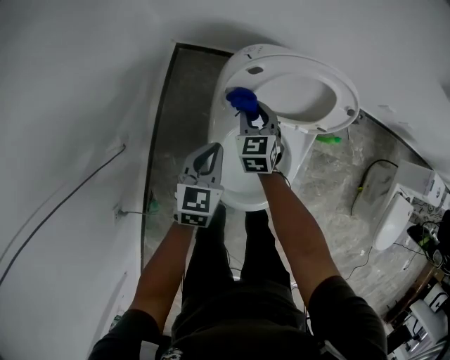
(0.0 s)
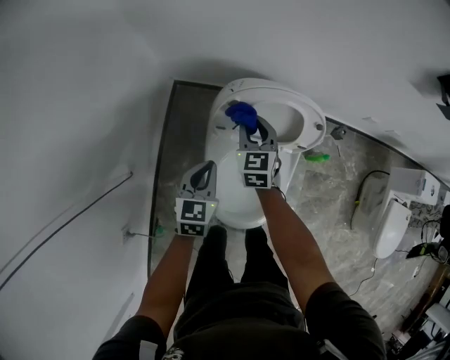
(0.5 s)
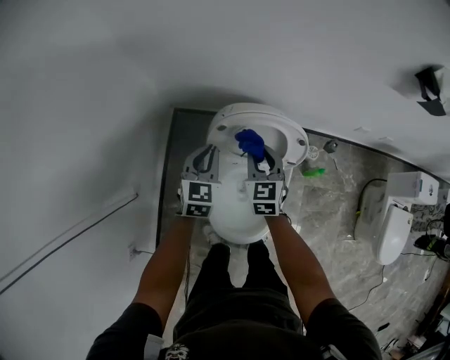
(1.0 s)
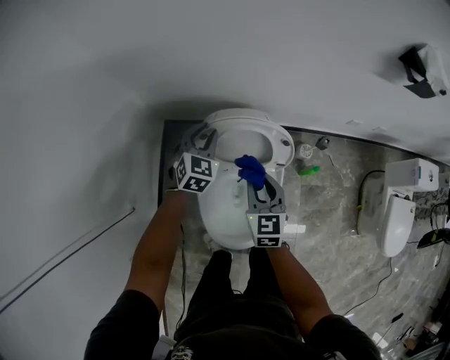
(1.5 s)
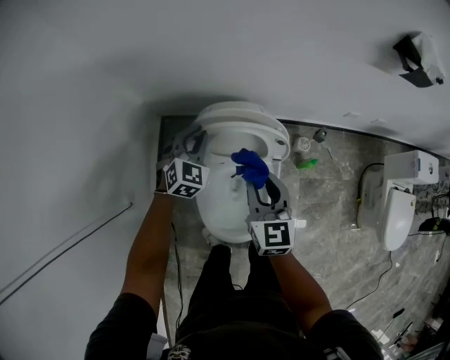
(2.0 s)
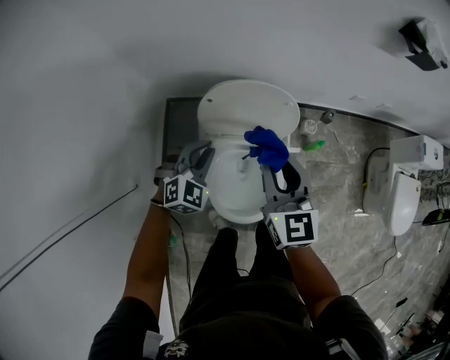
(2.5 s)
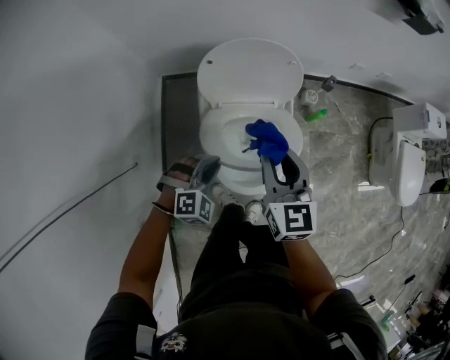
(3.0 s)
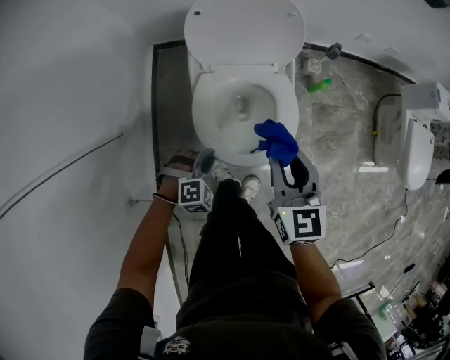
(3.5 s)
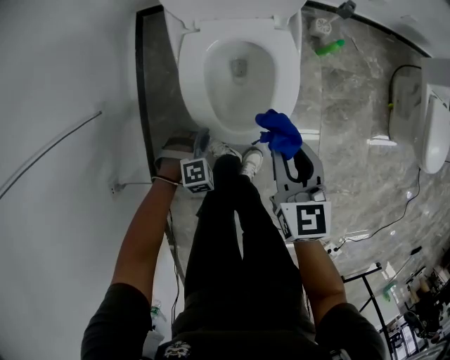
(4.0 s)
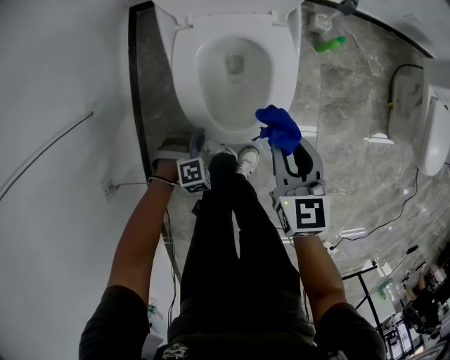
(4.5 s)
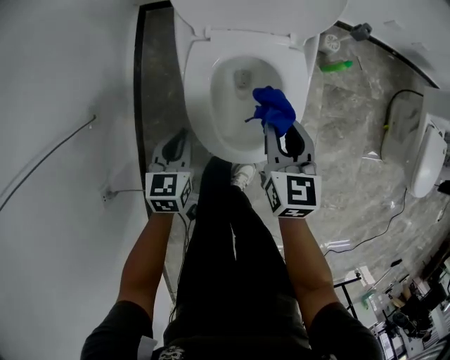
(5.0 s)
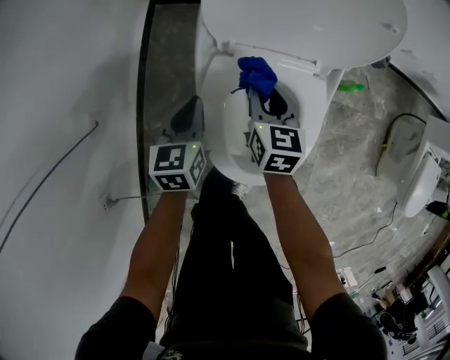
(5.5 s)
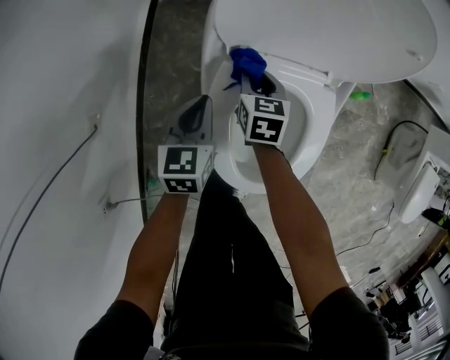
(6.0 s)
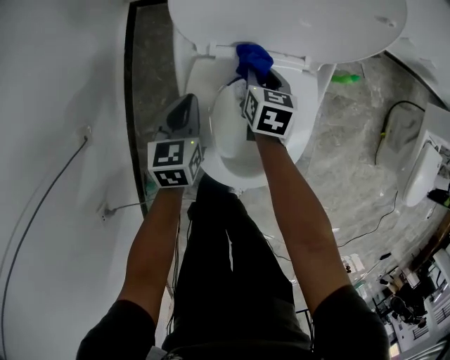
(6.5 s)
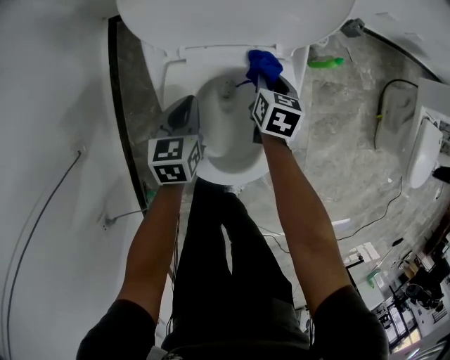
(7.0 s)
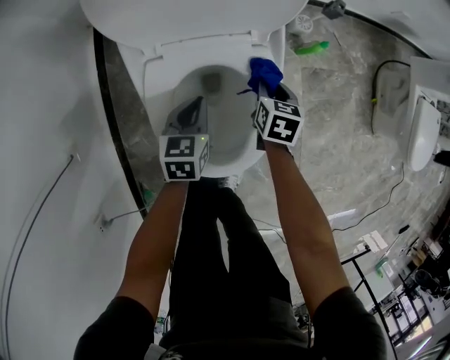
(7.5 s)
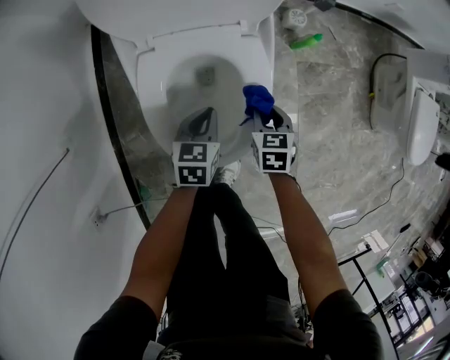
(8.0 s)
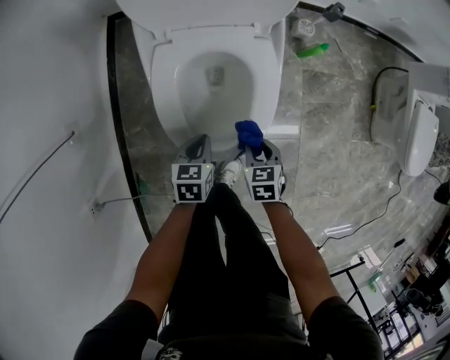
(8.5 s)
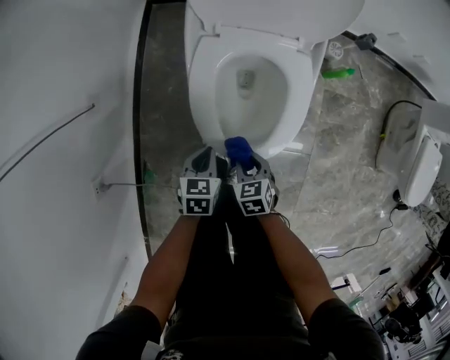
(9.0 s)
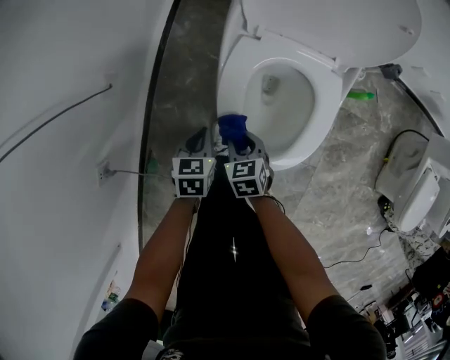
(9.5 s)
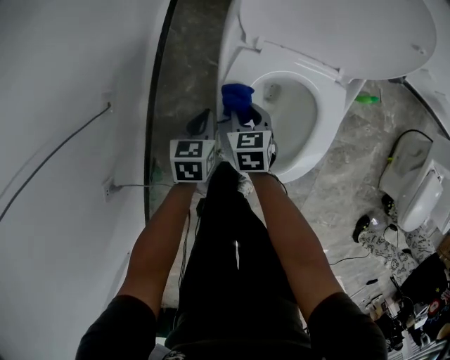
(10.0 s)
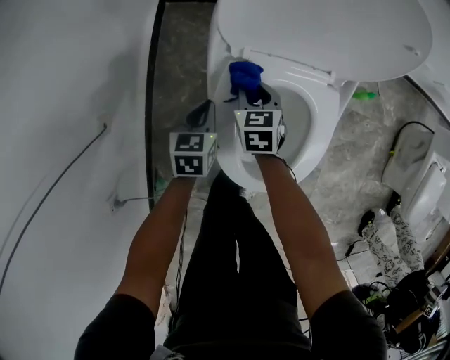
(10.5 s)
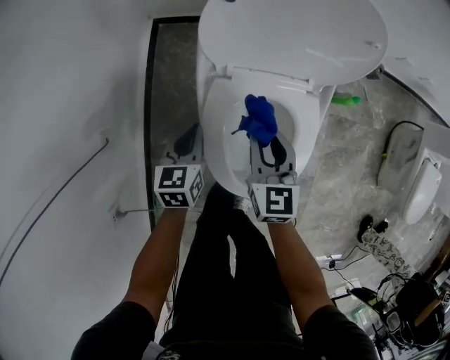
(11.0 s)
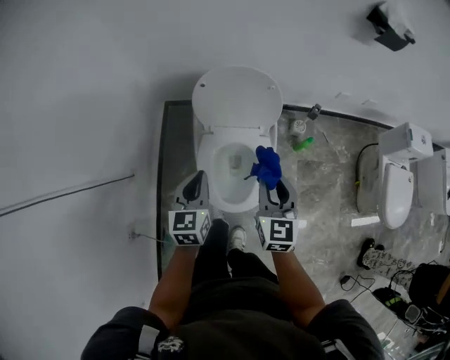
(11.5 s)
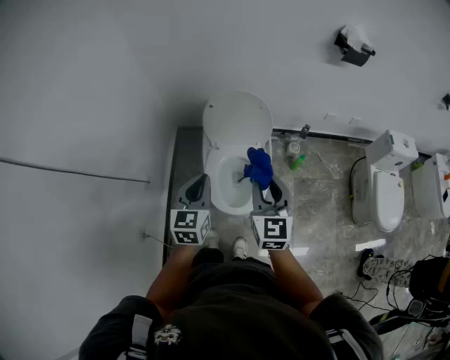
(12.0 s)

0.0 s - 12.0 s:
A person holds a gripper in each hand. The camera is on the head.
0.0 s - 2.0 s: The left gripper is displaced forward, upward and to the right by some 20 cm, and twists approximately 40 degrees clockwise, seen from behind. The right gripper goes approximately 30 cm upward and to the right, and changes its angle by about 30 degrees.
2.0 s - 4.0 s: The right gripper is displaced backward and downward by approximately 30 cm, while the left gripper travels backward and downward by some 50 cm, and points its fingers approximately 40 degrees further downward.
4.0 s - 6.0 s: The left gripper shifts some 25 cm forward, rotates around the line of its fingers by some 80 degrees, counterclockwise from behind, and closes its fingers; the right gripper is displaced forward, downward and to the left by approximately 40 cm.
6.0 s - 8.0 s: The left gripper is displaced to the right by some 20 cm; the right gripper heads to the right and backward, covering about 30 cm.
8.0 s - 10.0 s: The left gripper shifts by about 20 cm, and rotates some 20 degrees; the right gripper changes place by approximately 30 cm, and swivels some 20 degrees.
10.0 s - 12.0 s: Both grippers travel together upward, some 50 cm. The left gripper tilts its fingers approximately 30 degrees upward. The right gripper angles its fingers upward, by roughly 40 degrees.

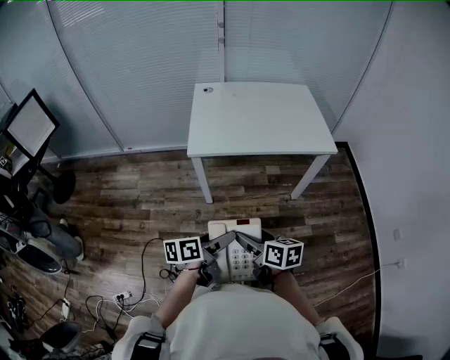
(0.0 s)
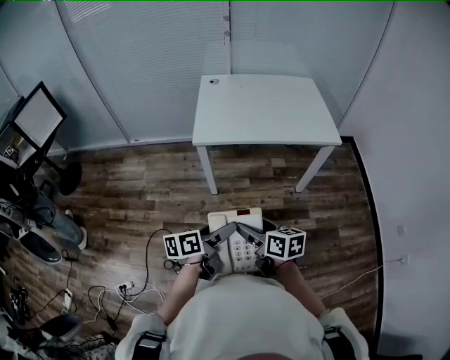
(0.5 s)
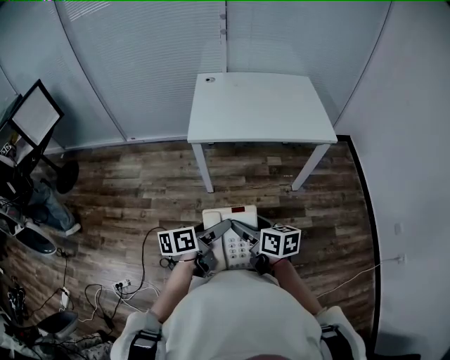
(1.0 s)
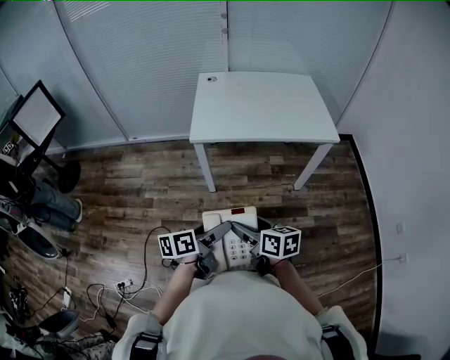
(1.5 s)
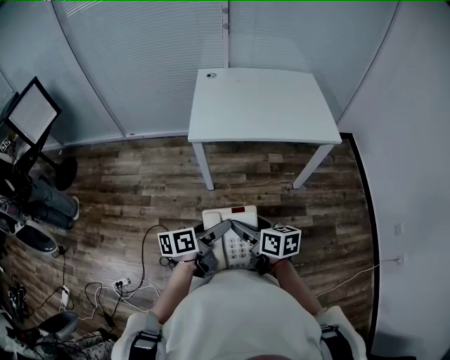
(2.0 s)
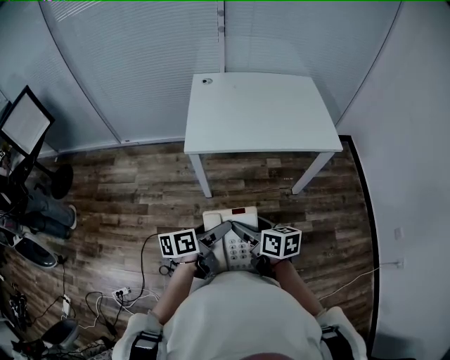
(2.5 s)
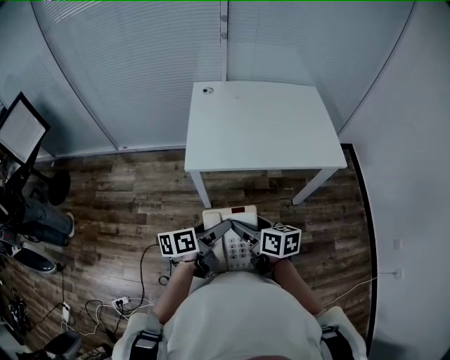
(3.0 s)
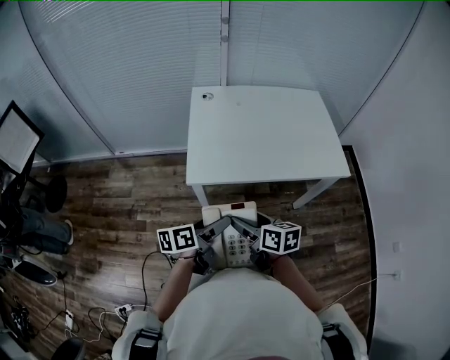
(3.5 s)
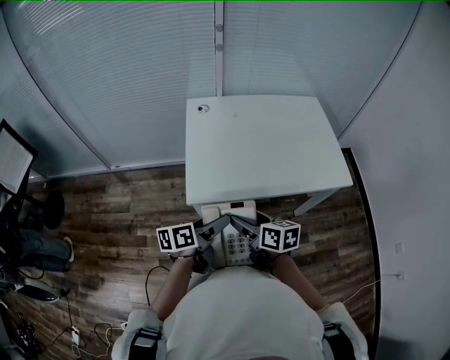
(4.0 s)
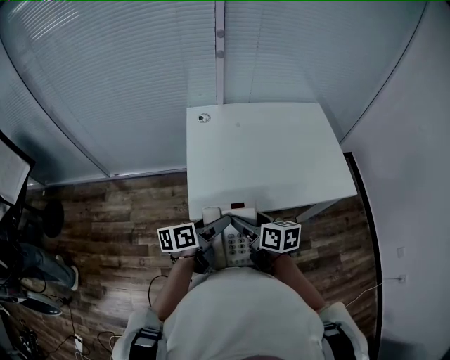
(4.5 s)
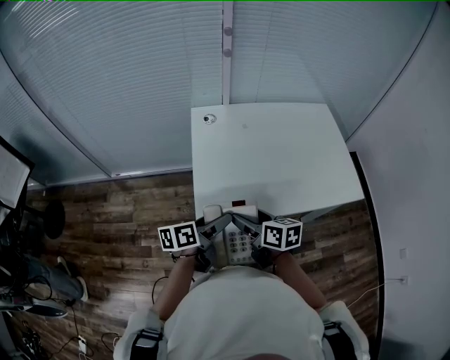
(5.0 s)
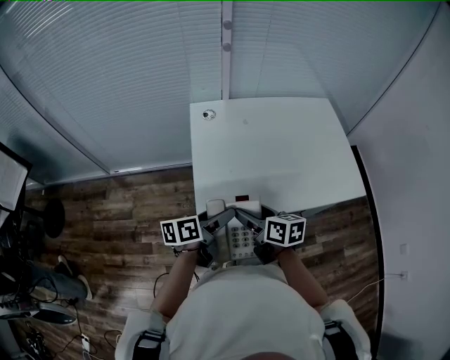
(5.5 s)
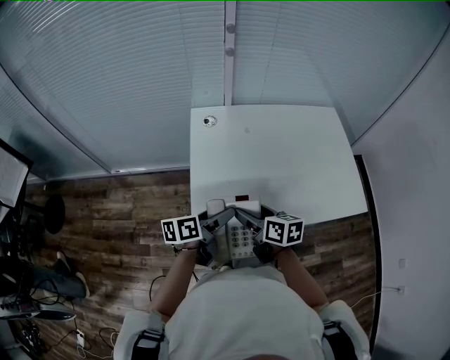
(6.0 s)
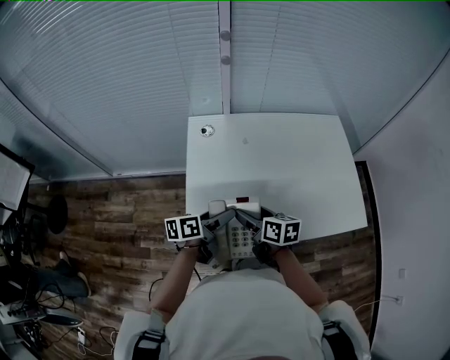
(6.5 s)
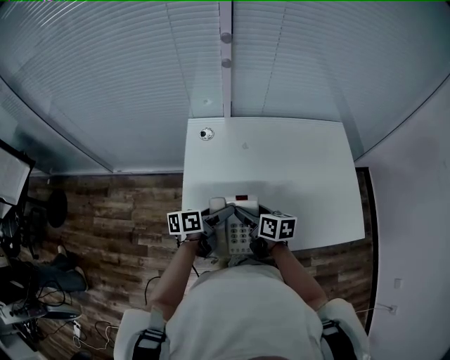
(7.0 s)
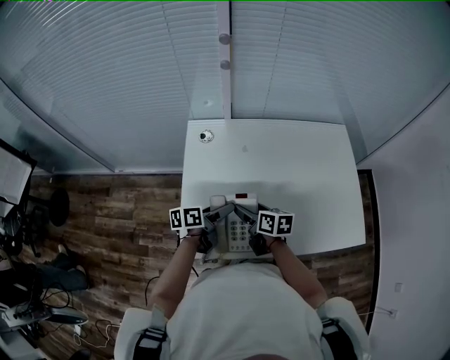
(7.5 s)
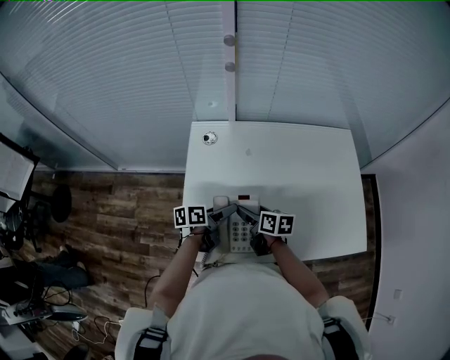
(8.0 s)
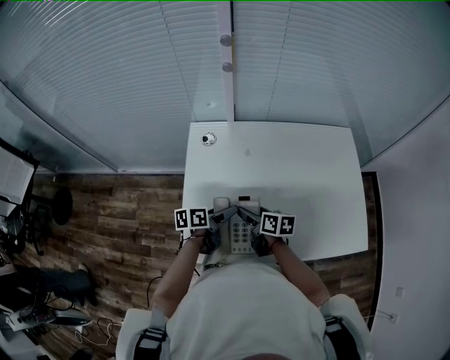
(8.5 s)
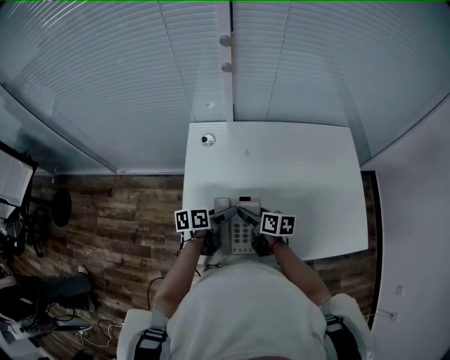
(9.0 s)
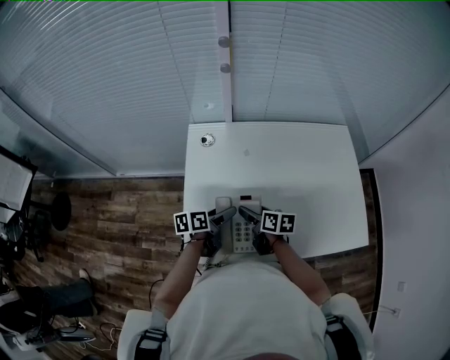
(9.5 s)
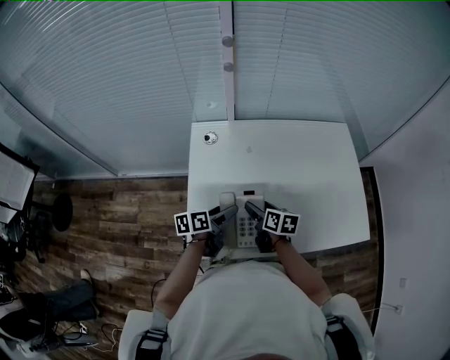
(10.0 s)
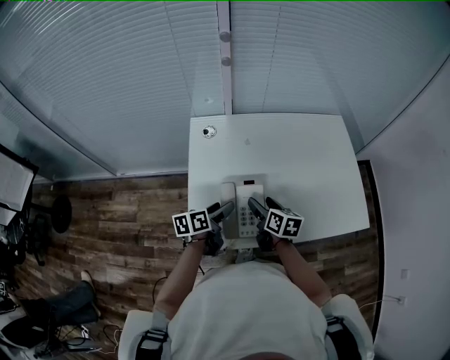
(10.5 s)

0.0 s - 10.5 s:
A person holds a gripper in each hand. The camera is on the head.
0.0 s - 2.0 s: There are only small adjustments of the grippers.
2.0 s - 4.0 s: Both grippers move forward, roughly 30 cm.
4.0 s - 6.5 s: The two grippers go approximately 20 cm forward.
6.5 s - 8.5 s: The grippers both shift forward and downward by approximately 10 cm.
8.5 s - 10.5 s: The left gripper changes place by some 5 cm, while the right gripper shifts by some 5 cm.

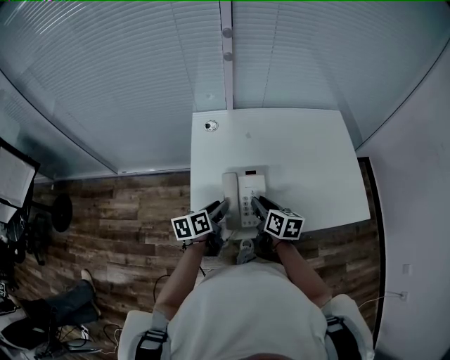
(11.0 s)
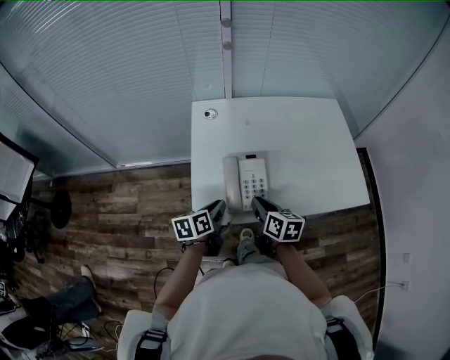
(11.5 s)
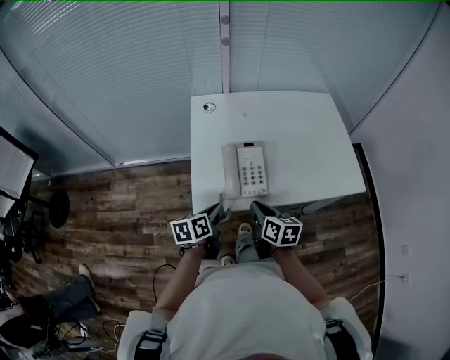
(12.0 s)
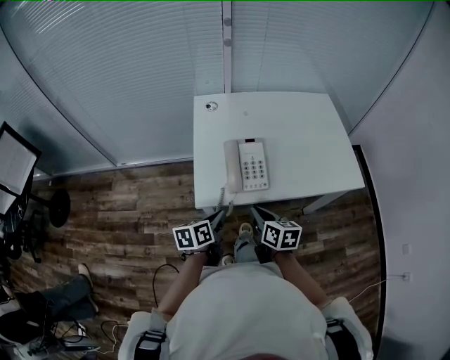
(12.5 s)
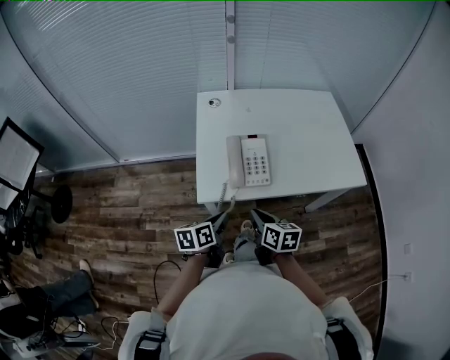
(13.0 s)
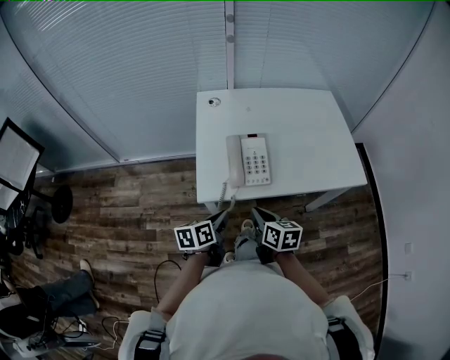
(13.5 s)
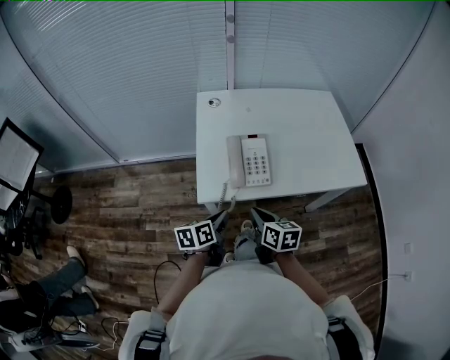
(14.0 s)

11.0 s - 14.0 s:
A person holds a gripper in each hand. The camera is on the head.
11.0 s - 12.5 s: The two grippers go some 20 cm backward.
12.5 s - 14.0 s: The grippers move only a little.

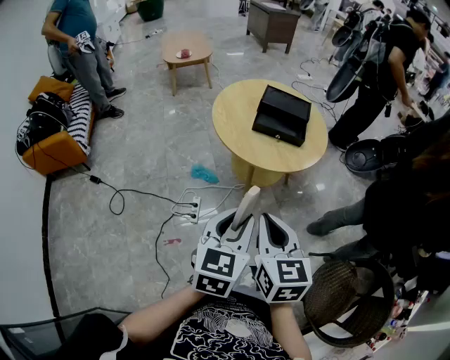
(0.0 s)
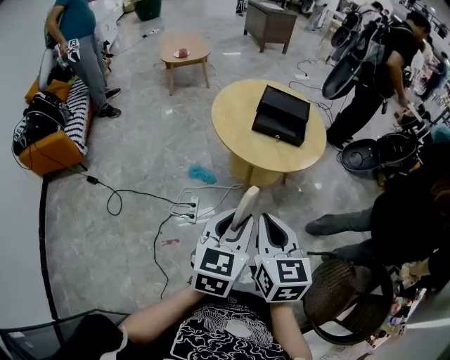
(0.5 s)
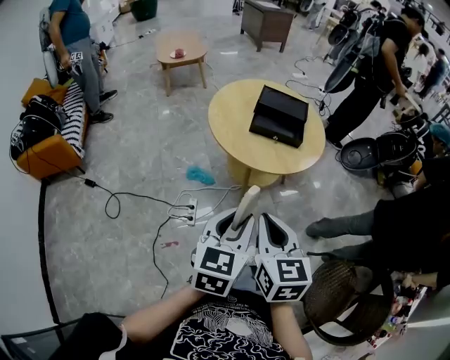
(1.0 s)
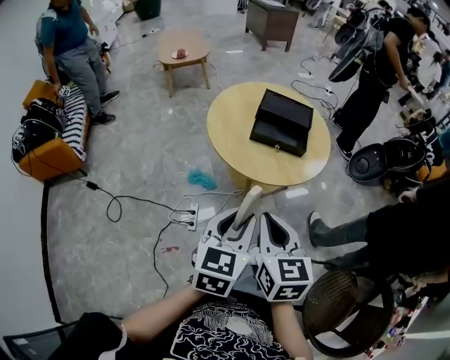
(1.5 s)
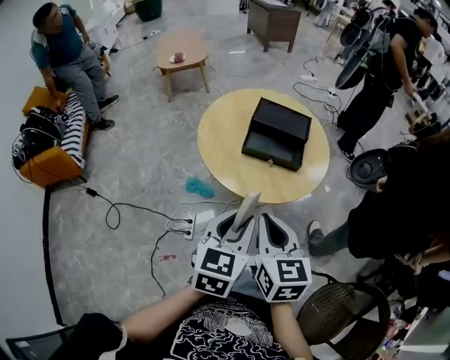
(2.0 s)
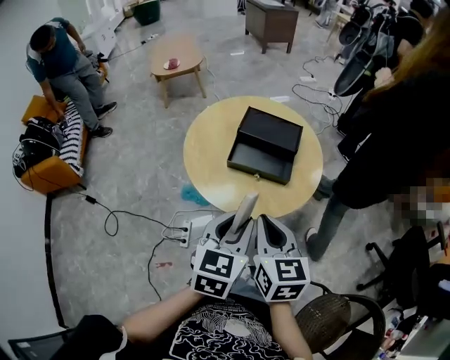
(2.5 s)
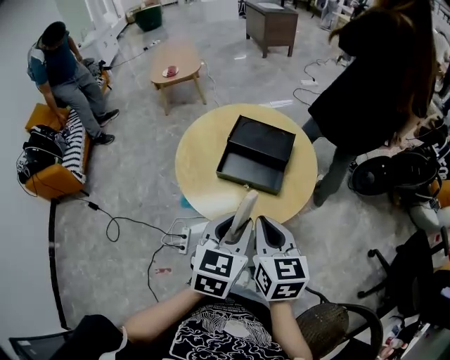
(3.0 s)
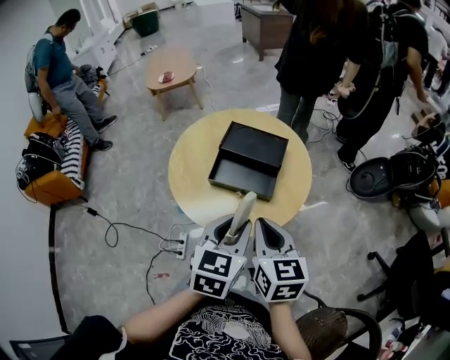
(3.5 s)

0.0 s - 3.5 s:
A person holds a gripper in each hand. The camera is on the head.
0.0 s - 2.0 s: The grippers both shift forward by some 15 cm.
2.0 s - 3.5 s: The grippers both shift to the right and forward by roughly 20 cm.
